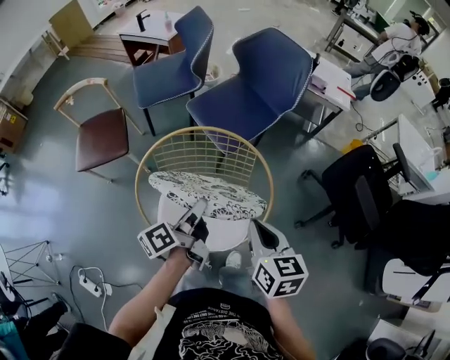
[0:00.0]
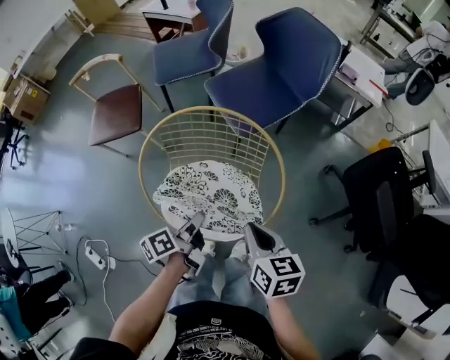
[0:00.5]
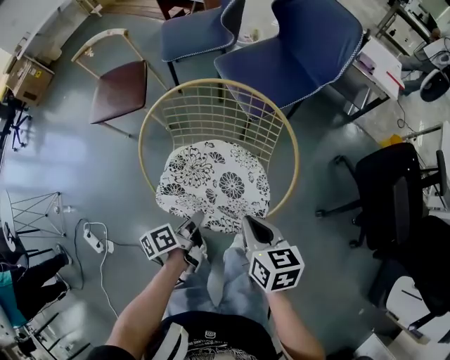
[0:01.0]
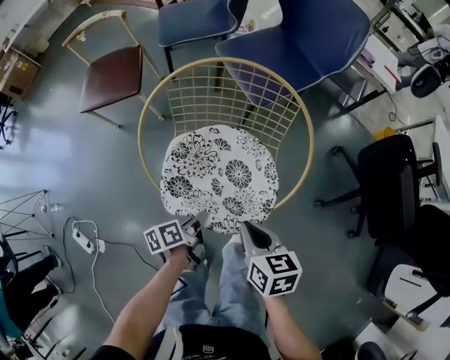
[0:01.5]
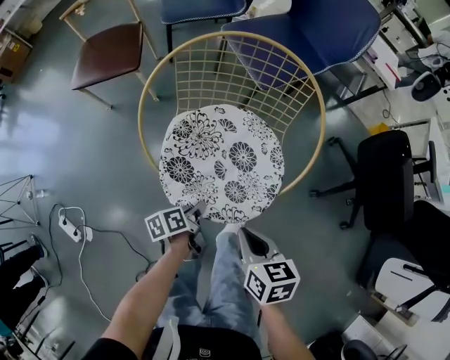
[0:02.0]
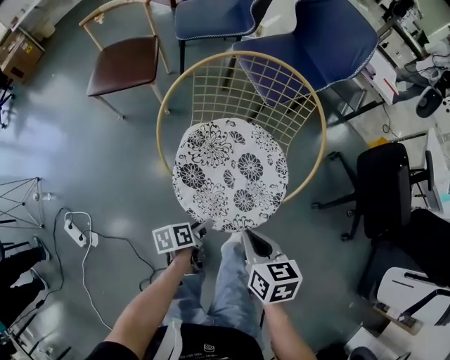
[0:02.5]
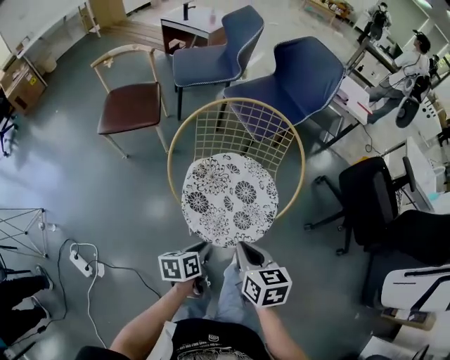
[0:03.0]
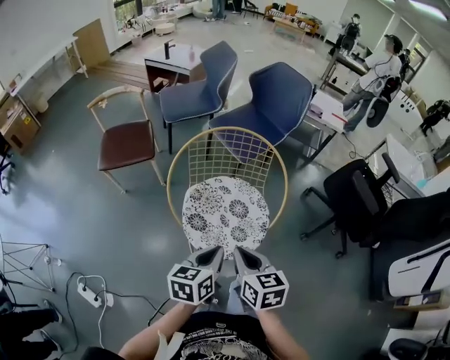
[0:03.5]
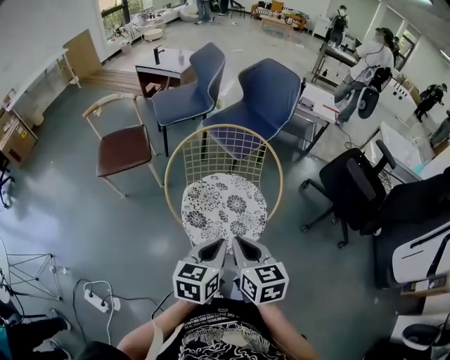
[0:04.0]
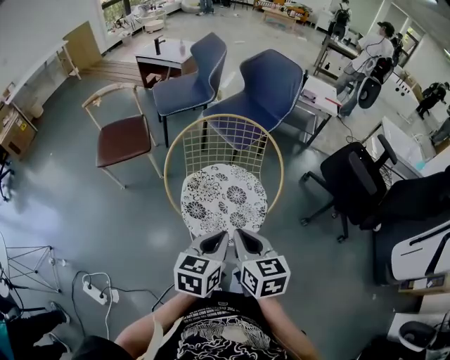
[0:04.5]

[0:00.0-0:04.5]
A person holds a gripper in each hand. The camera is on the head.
0:00.0 to 0:02.0: The right gripper moves downward, some 20 cm, and swivels some 20 degrees.
0:02.0 to 0:04.5: The right gripper shifts about 20 cm upward, and rotates about 30 degrees.

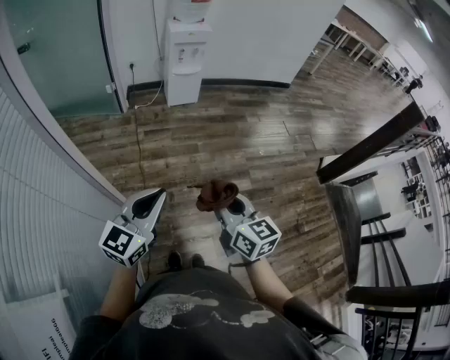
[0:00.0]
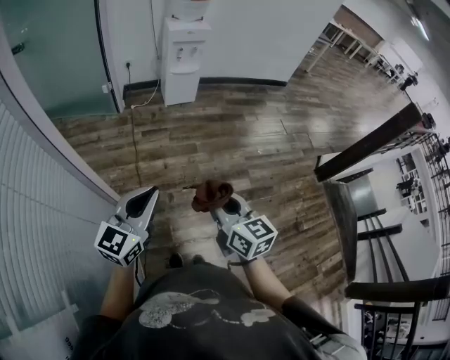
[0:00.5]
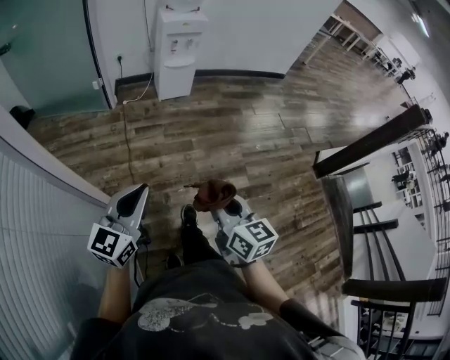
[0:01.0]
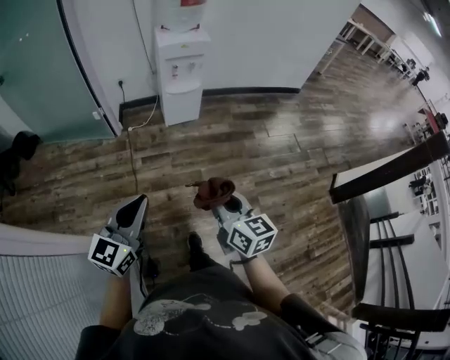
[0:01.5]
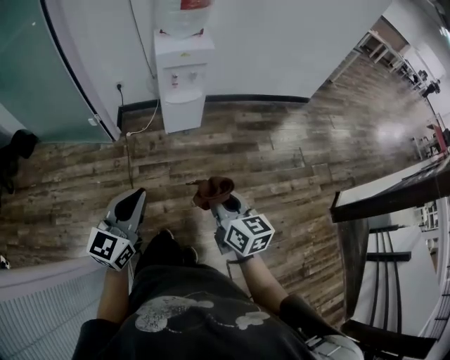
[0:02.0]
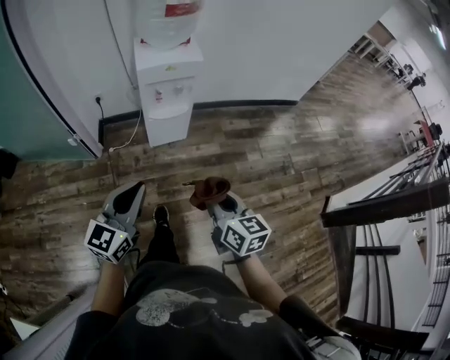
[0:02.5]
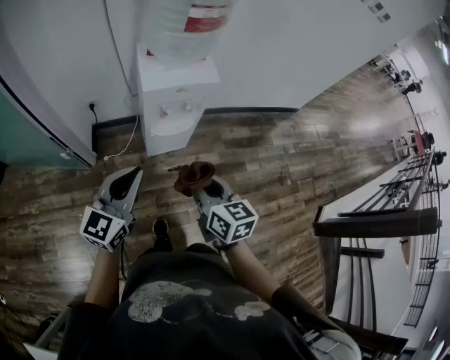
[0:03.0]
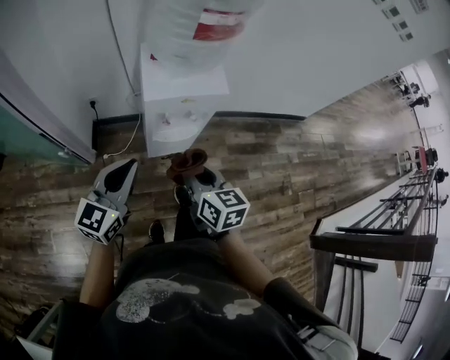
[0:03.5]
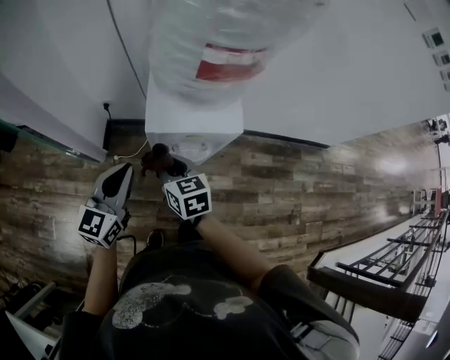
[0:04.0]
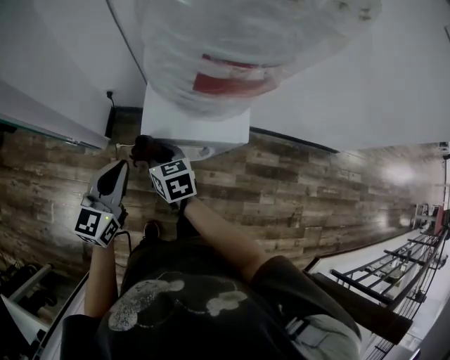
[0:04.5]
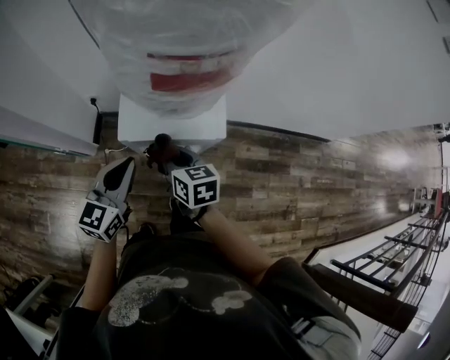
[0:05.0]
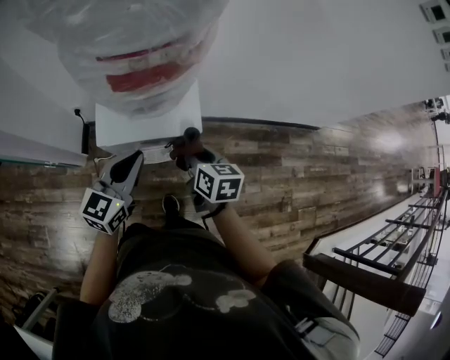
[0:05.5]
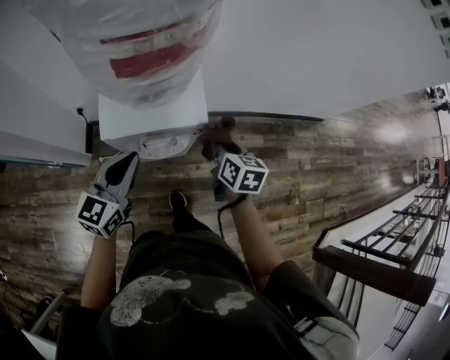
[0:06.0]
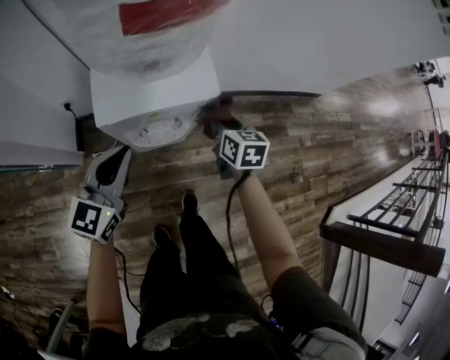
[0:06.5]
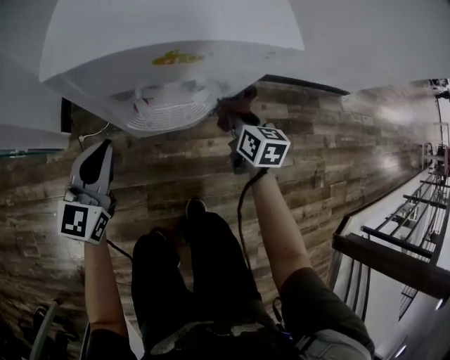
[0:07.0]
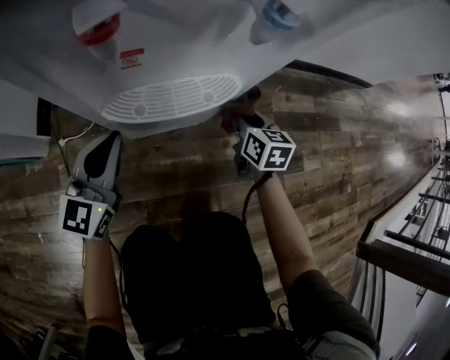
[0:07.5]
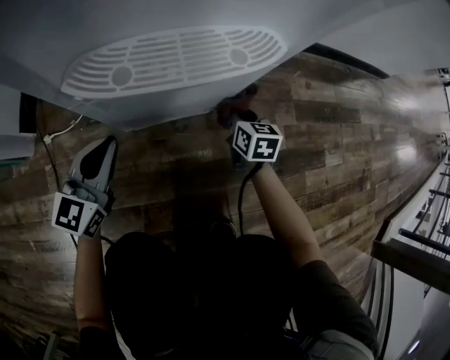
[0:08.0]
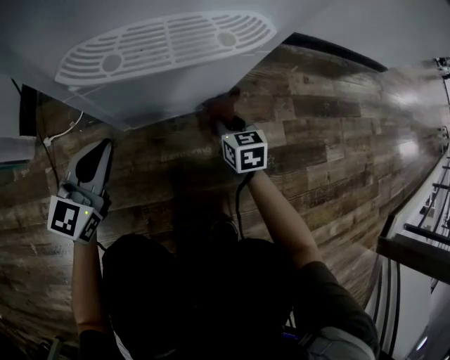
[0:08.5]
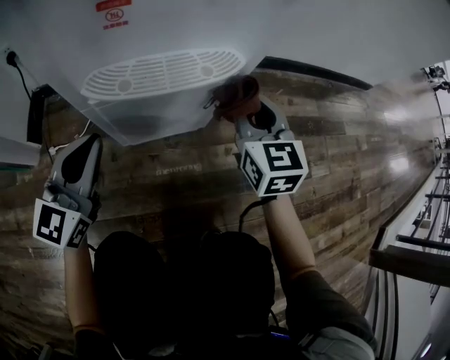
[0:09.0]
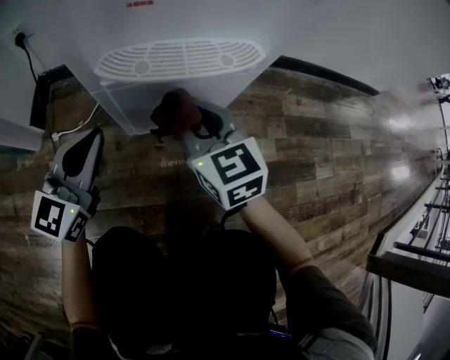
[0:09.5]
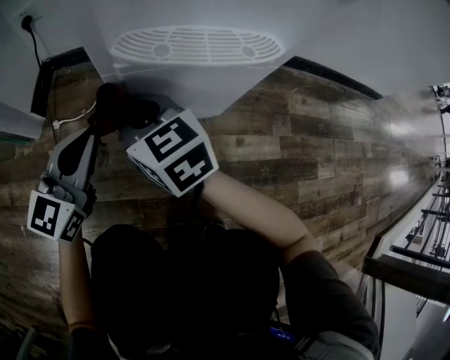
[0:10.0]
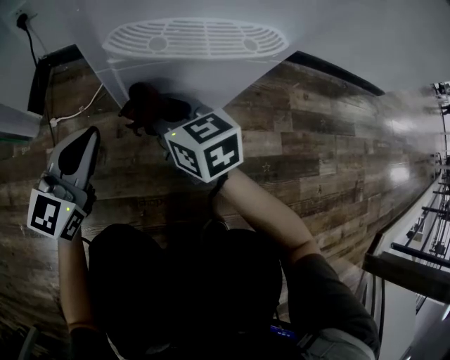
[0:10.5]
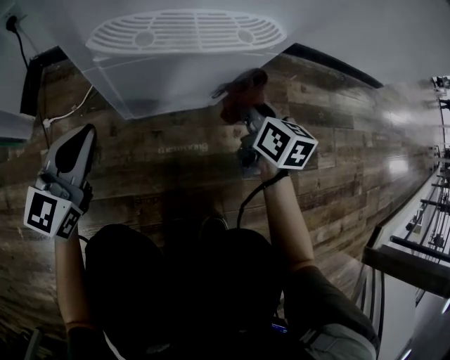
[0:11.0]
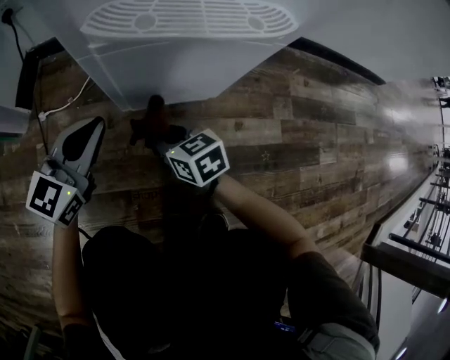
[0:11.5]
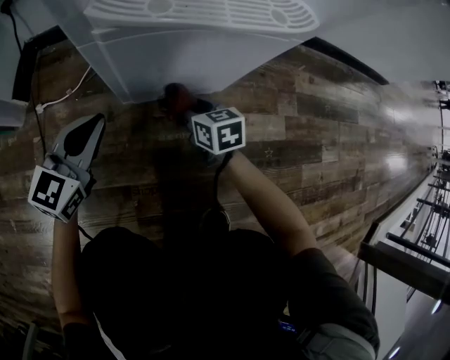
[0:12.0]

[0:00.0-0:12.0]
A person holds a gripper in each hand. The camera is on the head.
0:00.0 to 0:02.0: Both grippers are carried forward, about 40 cm.
0:02.0 to 0:04.0: The pair of grippers is taken forward, approximately 50 cm. The right gripper turns by some 30 degrees.
0:04.0 to 0:06.0: The left gripper changes place by about 15 cm; the right gripper changes place by about 30 cm, and swivels roughly 30 degrees.
0:06.0 to 0:08.0: Both grippers travel together downward, some 60 cm.
0:08.0 to 0:10.0: The left gripper travels upward by some 10 cm; the right gripper is displaced to the left and upward by approximately 35 cm, and rotates some 40 degrees.
0:10.0 to 0:12.0: The right gripper swings left and right, approximately 30 cm each way, with 2 reversals, and rotates about 30 degrees. Meanwhile the left gripper heads downward, covering roughly 10 cm.

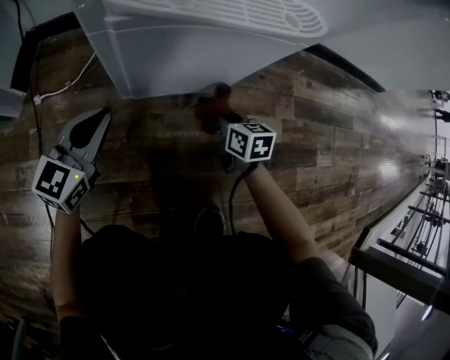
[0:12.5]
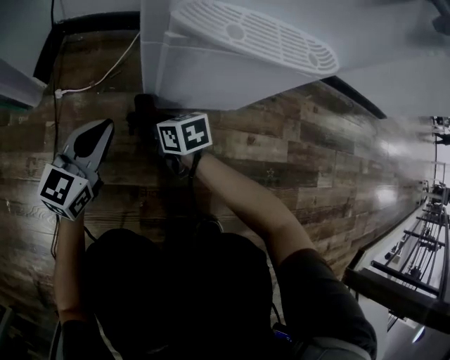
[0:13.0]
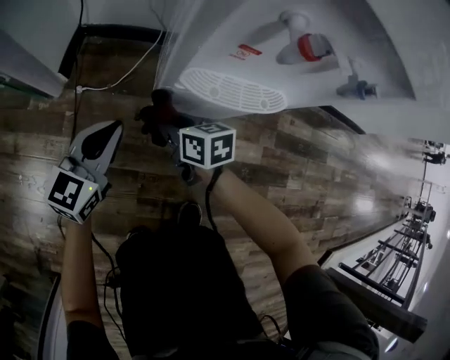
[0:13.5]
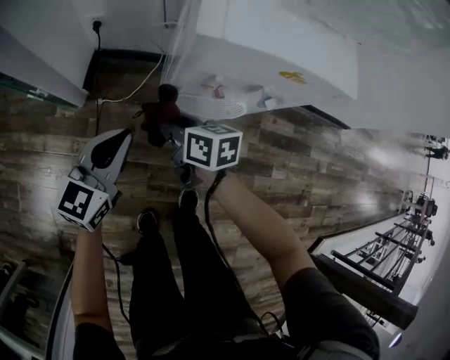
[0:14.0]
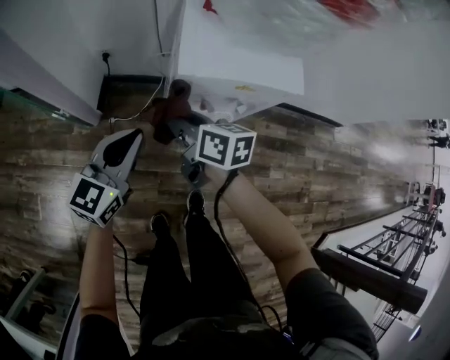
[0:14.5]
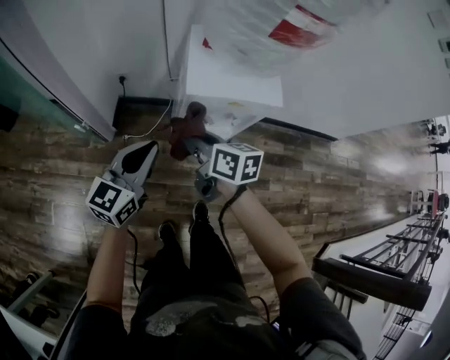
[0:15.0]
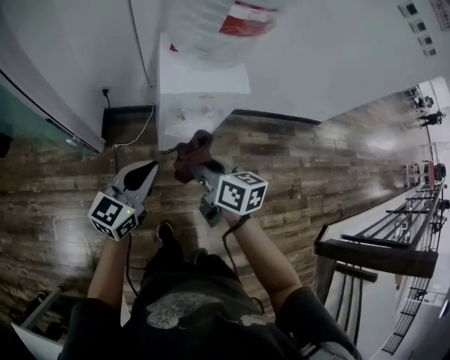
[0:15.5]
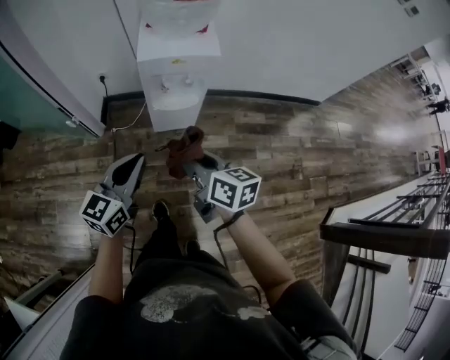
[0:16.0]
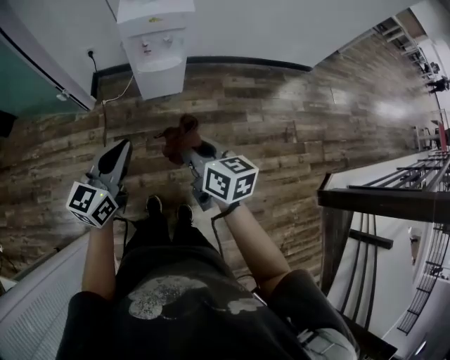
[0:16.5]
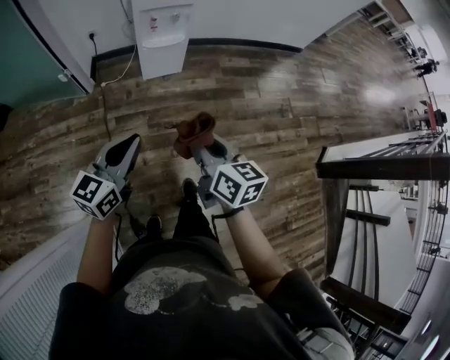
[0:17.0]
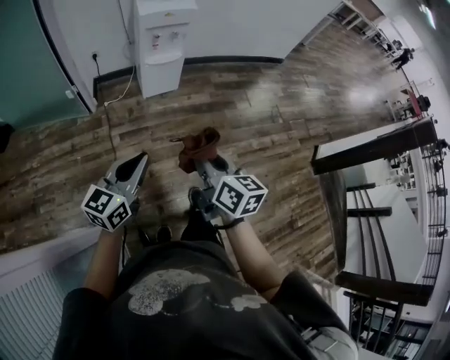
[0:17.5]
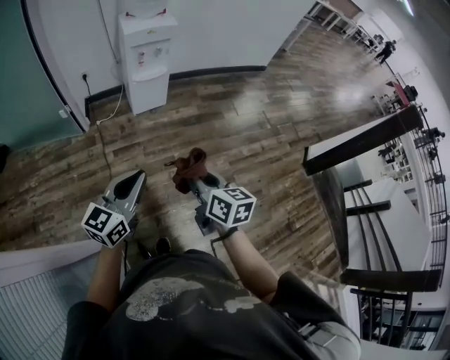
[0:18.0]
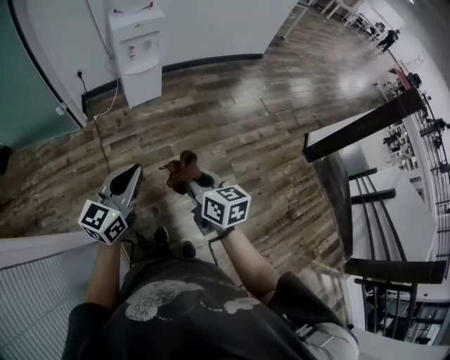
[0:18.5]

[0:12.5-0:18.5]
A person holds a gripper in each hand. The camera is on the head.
0:12.5 to 0:14.5: The two grippers go about 60 cm upward. The right gripper turns by approximately 30 degrees.
0:14.5 to 0:16.5: The left gripper is displaced backward by about 35 cm, while the right gripper moves backward and to the right, roughly 50 cm.
0:16.5 to 0:18.5: The grippers both shift backward by some 35 cm.

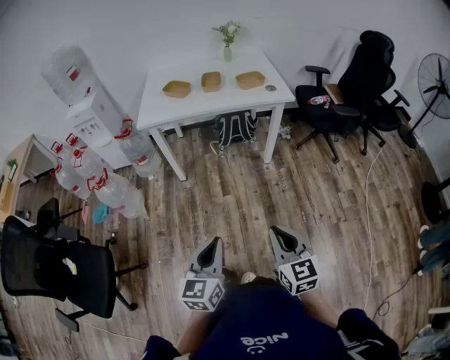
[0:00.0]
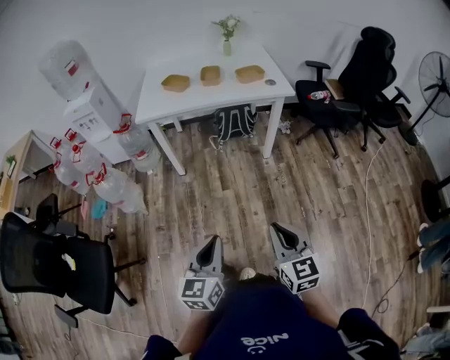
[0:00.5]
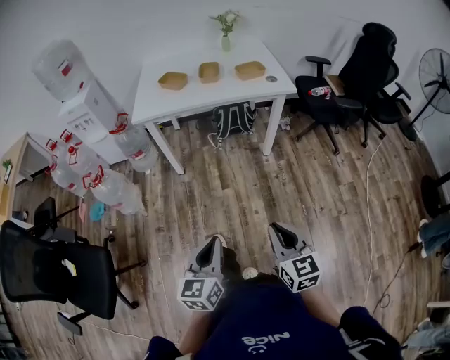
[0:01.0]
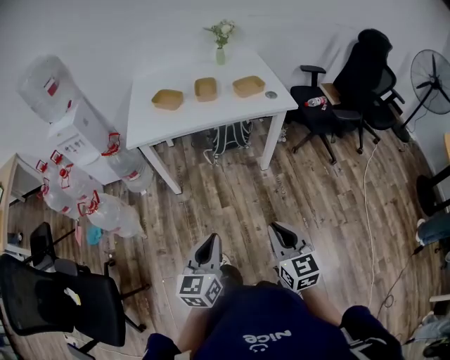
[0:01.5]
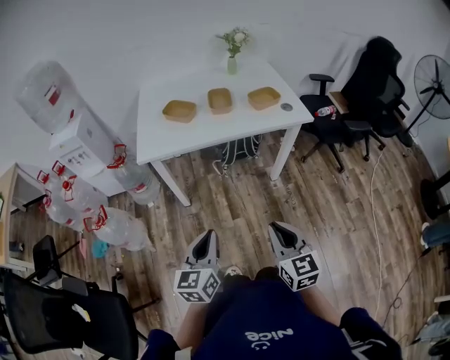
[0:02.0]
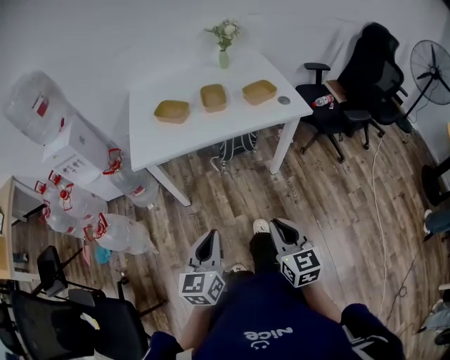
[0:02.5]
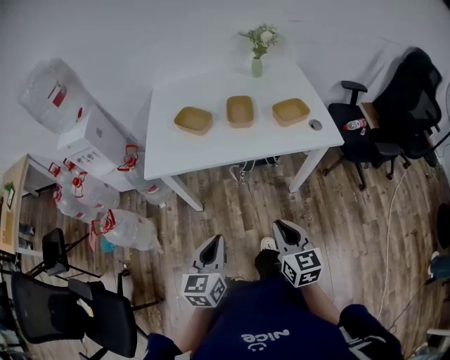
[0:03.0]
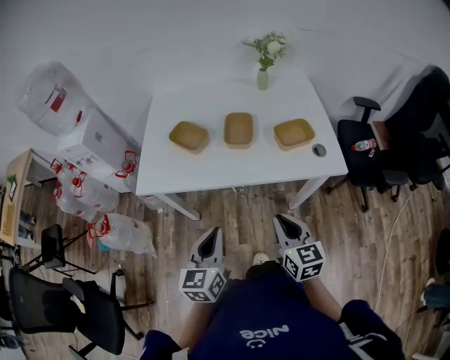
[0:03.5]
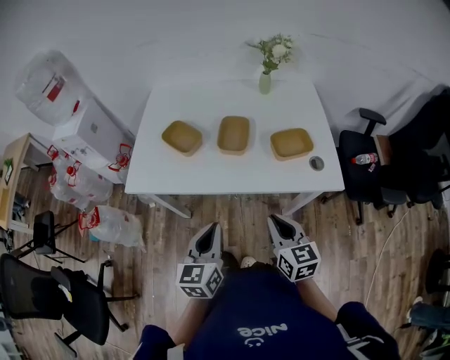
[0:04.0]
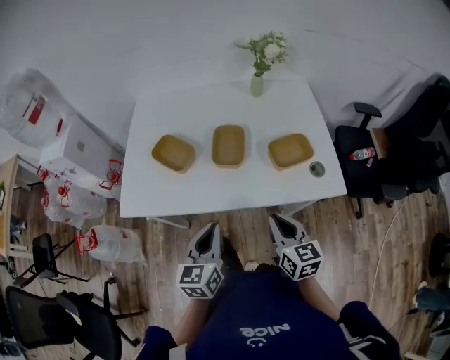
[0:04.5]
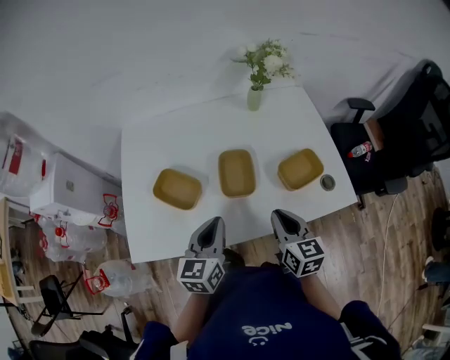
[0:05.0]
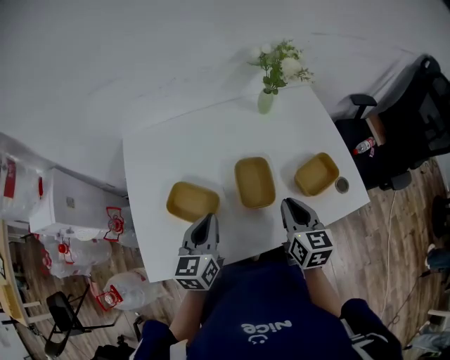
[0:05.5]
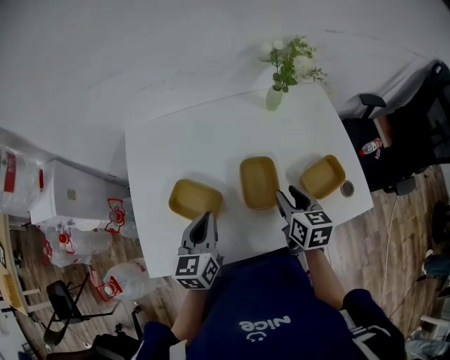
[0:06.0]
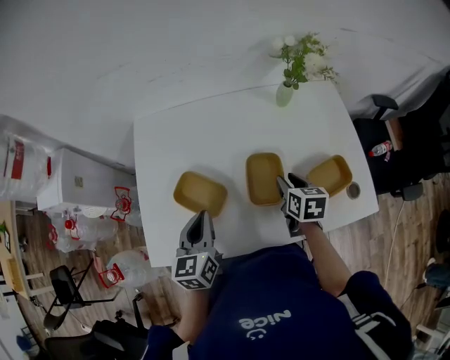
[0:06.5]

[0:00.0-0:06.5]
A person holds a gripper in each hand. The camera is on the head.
0:00.0 to 0:02.0: Both grippers move forward and to the left, approximately 30 cm.
0:02.0 to 0:04.5: The two grippers travel together, forward, some 40 cm.
0:04.5 to 0:06.5: The left gripper is displaced forward and to the left by approximately 30 cm; the right gripper is displaced forward by about 30 cm, turns by about 30 degrees, and opens up.
